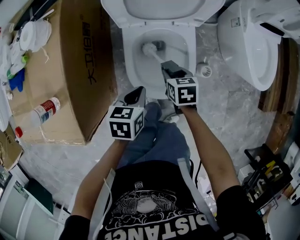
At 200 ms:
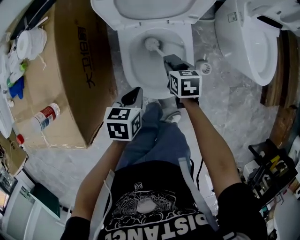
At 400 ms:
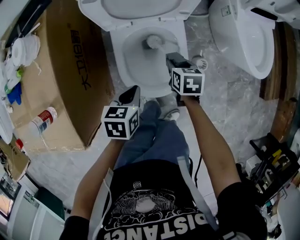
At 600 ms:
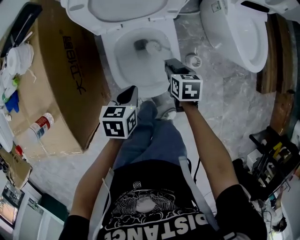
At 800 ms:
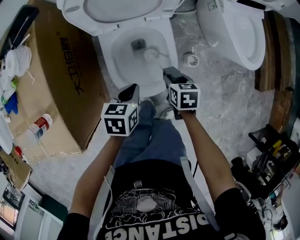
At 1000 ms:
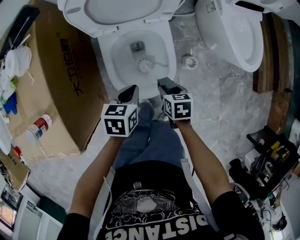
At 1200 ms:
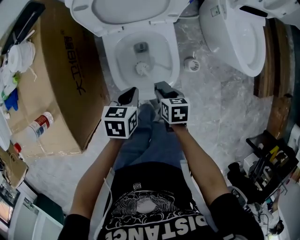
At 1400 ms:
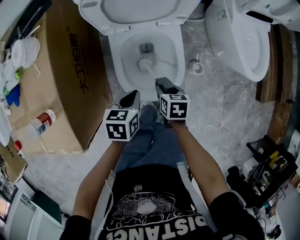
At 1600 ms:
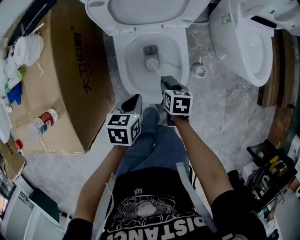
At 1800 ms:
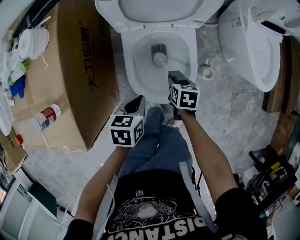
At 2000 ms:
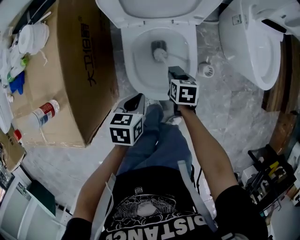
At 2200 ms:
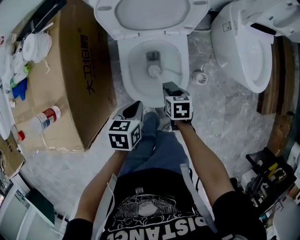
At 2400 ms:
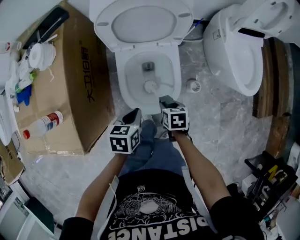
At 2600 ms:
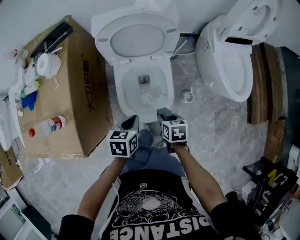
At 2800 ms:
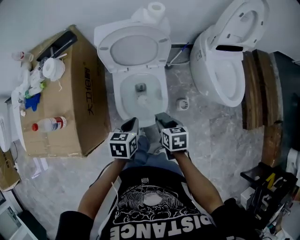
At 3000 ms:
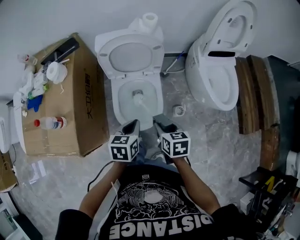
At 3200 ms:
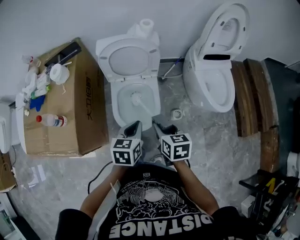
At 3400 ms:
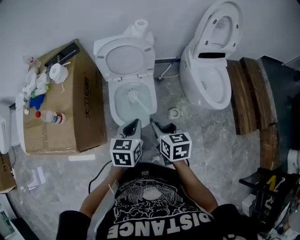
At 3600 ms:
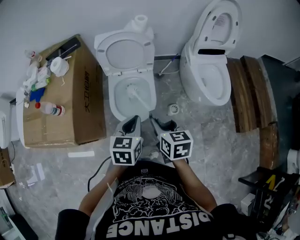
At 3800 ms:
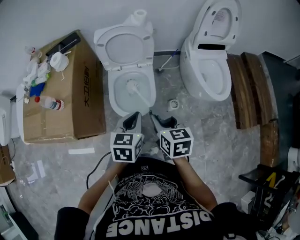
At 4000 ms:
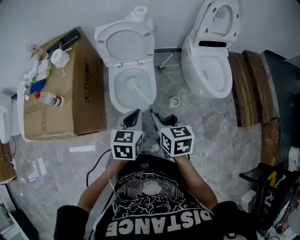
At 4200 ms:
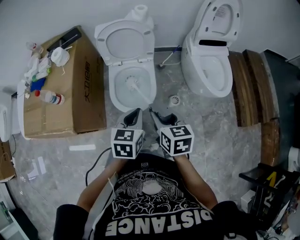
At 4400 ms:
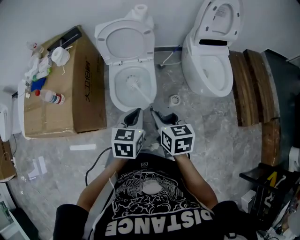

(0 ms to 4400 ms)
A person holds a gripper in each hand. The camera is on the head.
0 ms - 1400 ms: The right gripper shifts about 5 cm backward.
1400 ms - 3000 ms: The left gripper is displaced upward and to the right by roughly 15 cm; the right gripper moves upward, about 20 cm.
3000 ms - 4400 ms: The left gripper travels backward, upward and to the right by about 15 cm, while the right gripper shifts about 15 cm upward and backward.

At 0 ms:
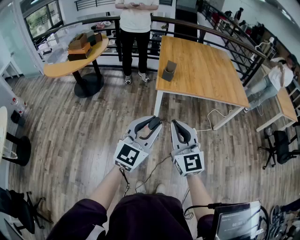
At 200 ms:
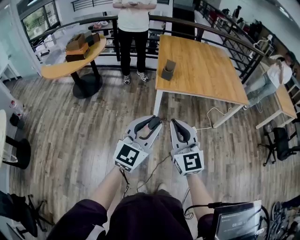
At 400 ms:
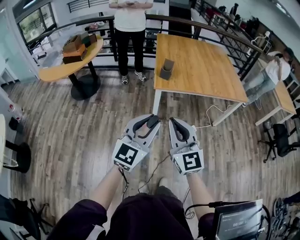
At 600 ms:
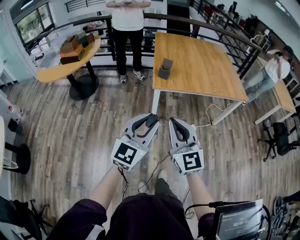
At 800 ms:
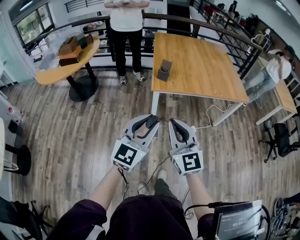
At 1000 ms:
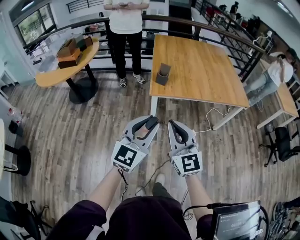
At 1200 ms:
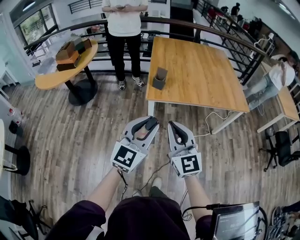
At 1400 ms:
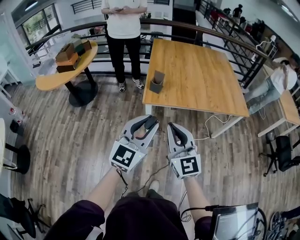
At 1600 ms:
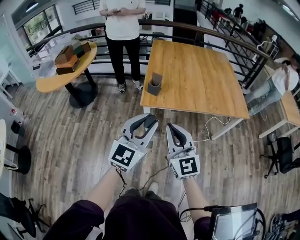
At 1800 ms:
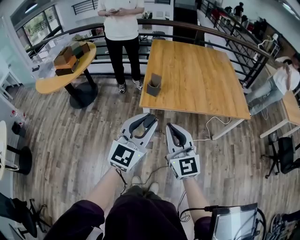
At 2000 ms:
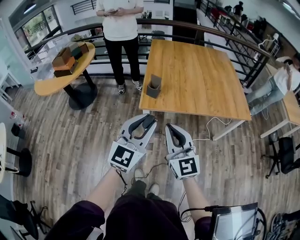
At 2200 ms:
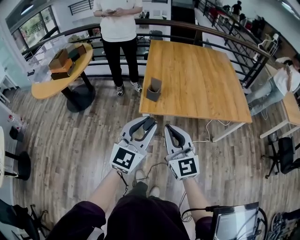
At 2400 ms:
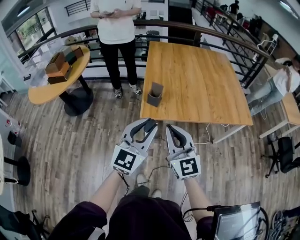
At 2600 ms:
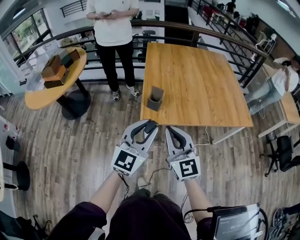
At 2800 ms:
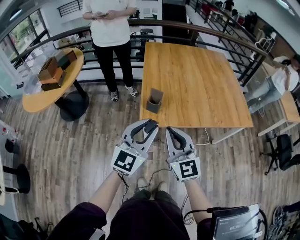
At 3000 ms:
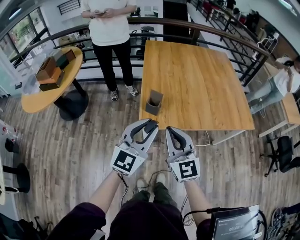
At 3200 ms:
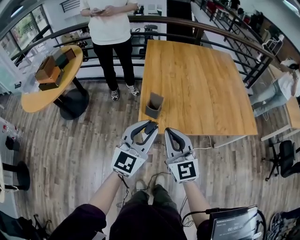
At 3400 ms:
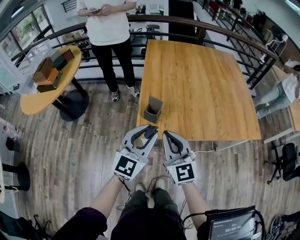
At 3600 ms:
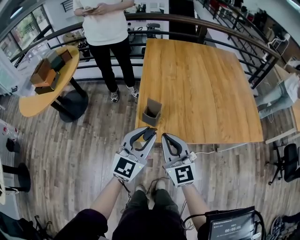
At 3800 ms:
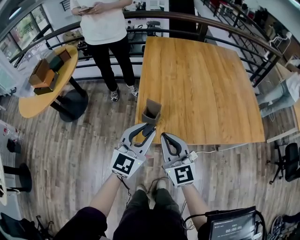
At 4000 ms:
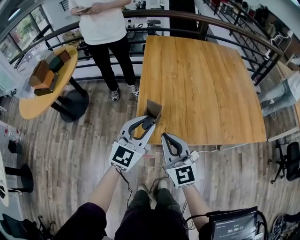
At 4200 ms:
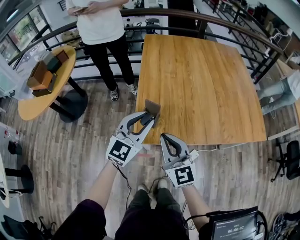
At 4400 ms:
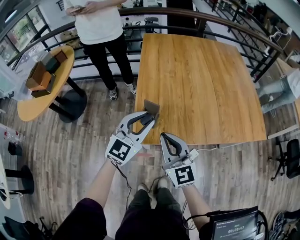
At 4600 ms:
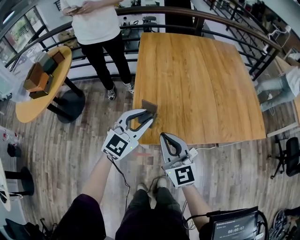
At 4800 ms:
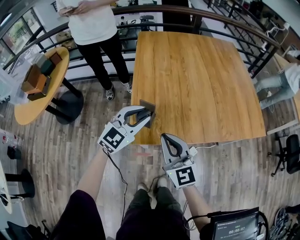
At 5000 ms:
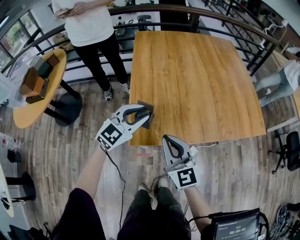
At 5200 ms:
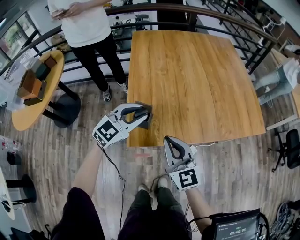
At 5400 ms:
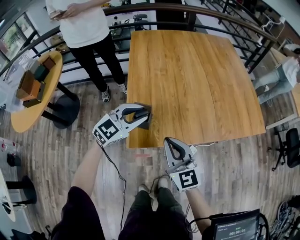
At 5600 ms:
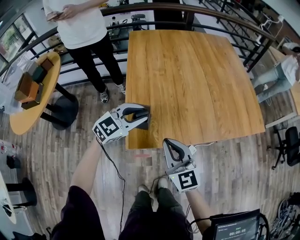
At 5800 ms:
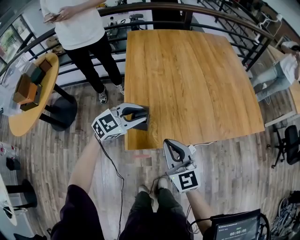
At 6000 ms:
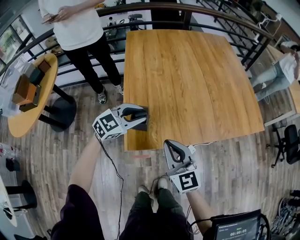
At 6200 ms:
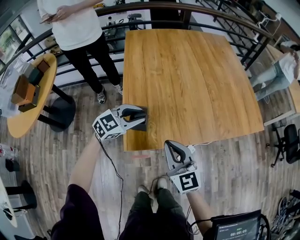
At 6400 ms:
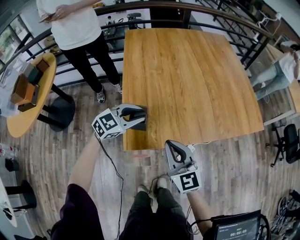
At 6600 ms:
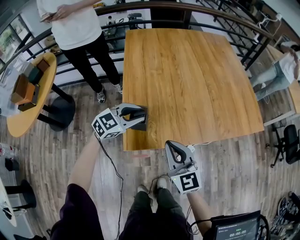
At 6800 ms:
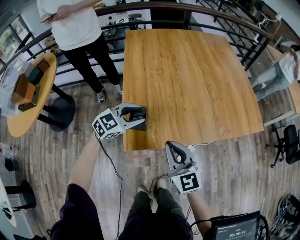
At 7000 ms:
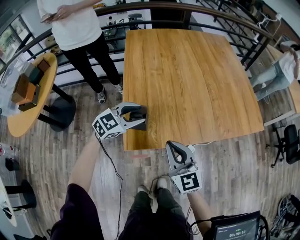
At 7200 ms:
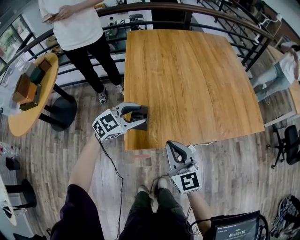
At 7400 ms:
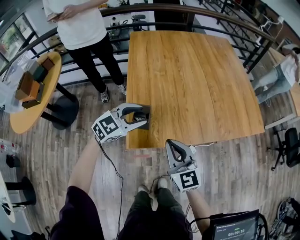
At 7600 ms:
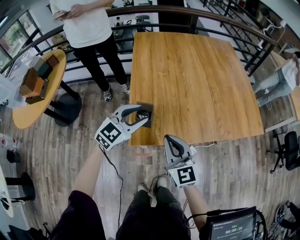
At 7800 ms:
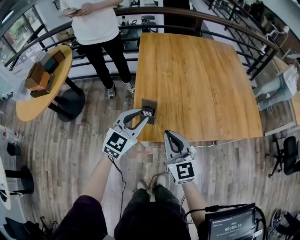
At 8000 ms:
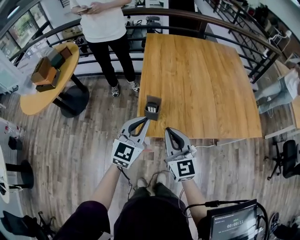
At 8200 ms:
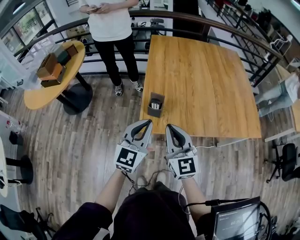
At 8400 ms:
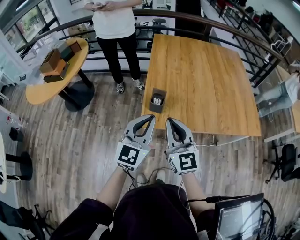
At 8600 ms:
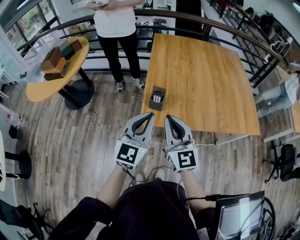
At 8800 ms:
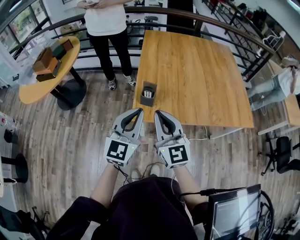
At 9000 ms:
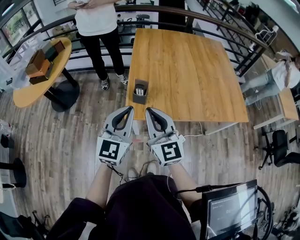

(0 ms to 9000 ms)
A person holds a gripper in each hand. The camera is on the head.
0 ms - 1600 ms: Both grippers move forward and to the right, about 25 cm.
1600 ms - 3000 ms: The two grippers go about 25 cm forward.
3000 ms - 4400 ms: Both grippers move forward and downward, approximately 20 cm.
4400 ms - 6000 ms: The left gripper moves downward and forward, some 15 cm, and rotates approximately 30 degrees. Meanwhile the right gripper moves about 5 cm.
6000 ms - 7600 ms: The left gripper travels upward by roughly 5 cm.
7600 ms - 9000 ms: The right gripper goes some 20 cm upward, backward and to the left, while the left gripper travels backward and upward by approximately 25 cm, swivels approximately 40 degrees, and closes.

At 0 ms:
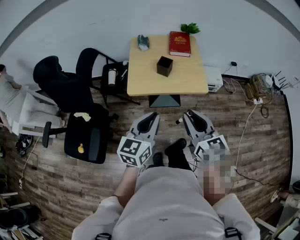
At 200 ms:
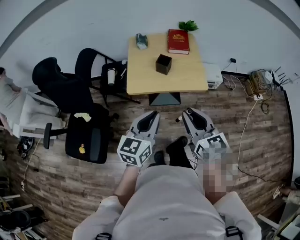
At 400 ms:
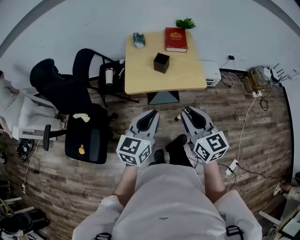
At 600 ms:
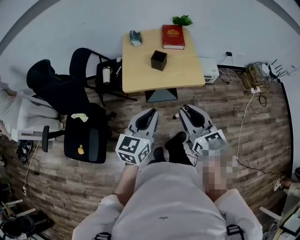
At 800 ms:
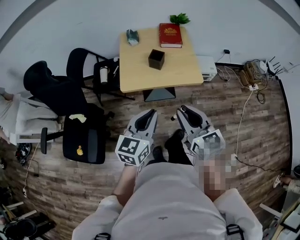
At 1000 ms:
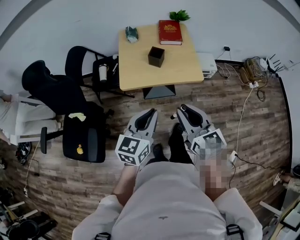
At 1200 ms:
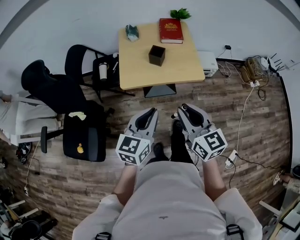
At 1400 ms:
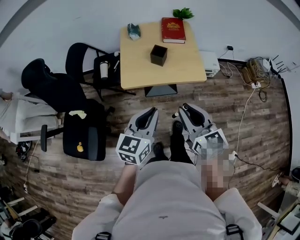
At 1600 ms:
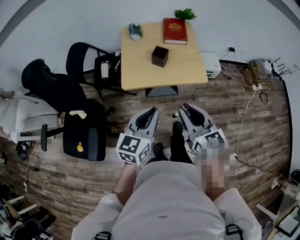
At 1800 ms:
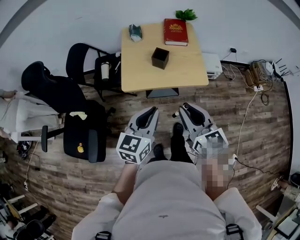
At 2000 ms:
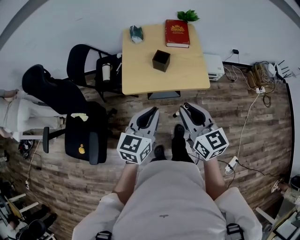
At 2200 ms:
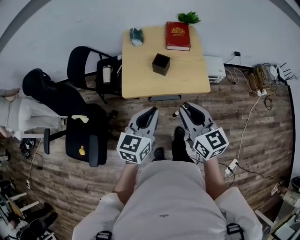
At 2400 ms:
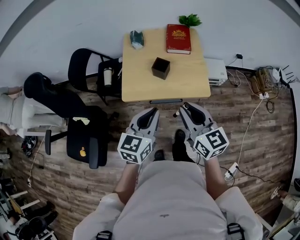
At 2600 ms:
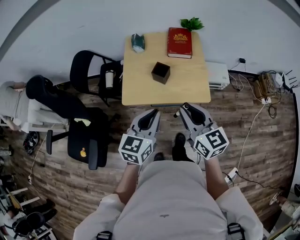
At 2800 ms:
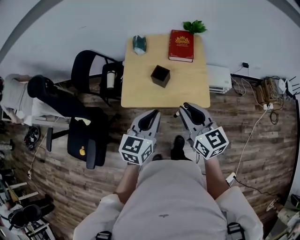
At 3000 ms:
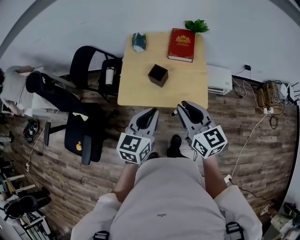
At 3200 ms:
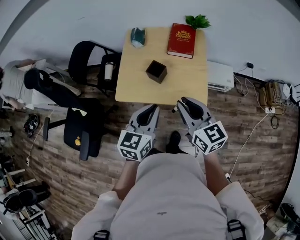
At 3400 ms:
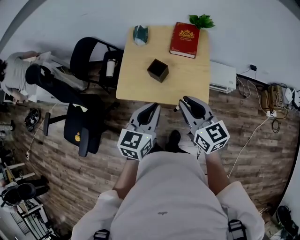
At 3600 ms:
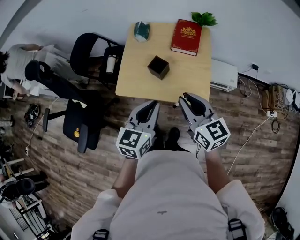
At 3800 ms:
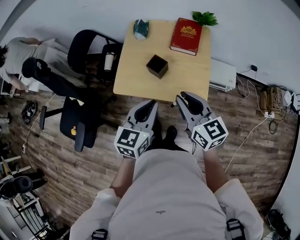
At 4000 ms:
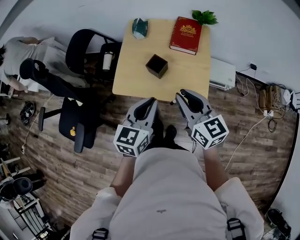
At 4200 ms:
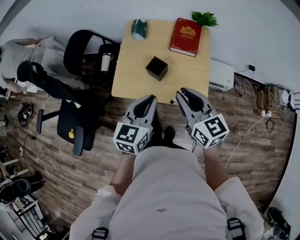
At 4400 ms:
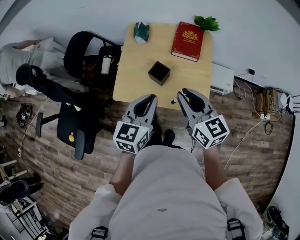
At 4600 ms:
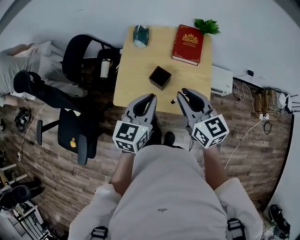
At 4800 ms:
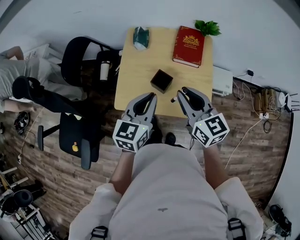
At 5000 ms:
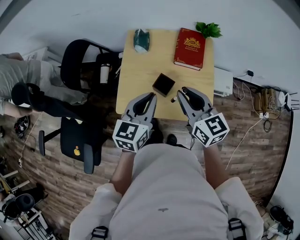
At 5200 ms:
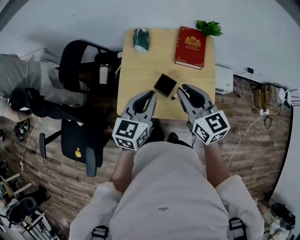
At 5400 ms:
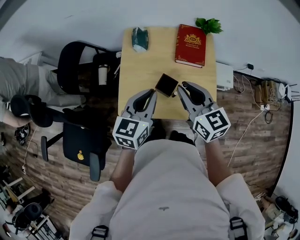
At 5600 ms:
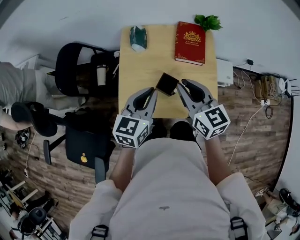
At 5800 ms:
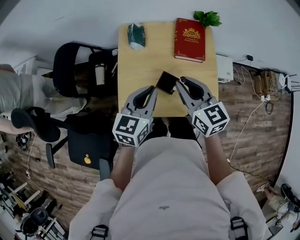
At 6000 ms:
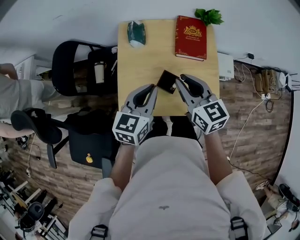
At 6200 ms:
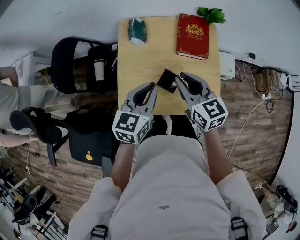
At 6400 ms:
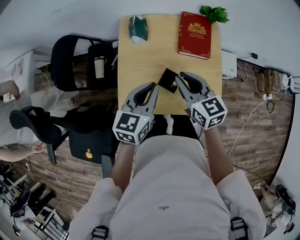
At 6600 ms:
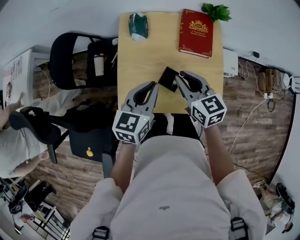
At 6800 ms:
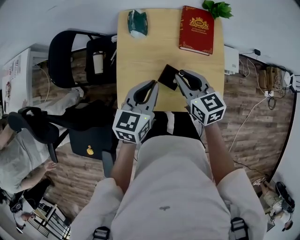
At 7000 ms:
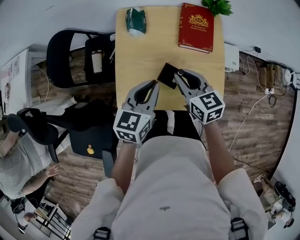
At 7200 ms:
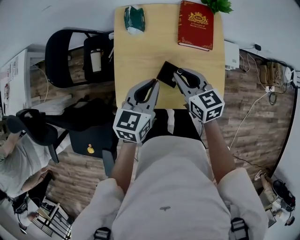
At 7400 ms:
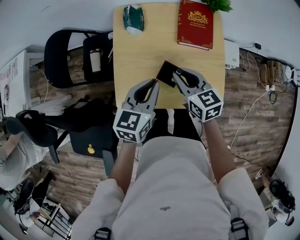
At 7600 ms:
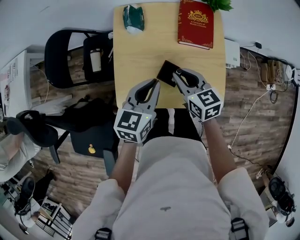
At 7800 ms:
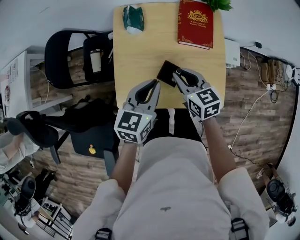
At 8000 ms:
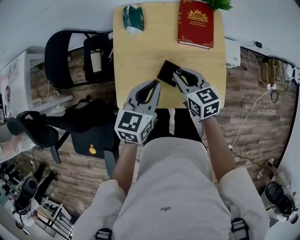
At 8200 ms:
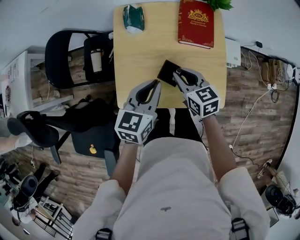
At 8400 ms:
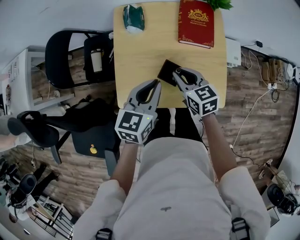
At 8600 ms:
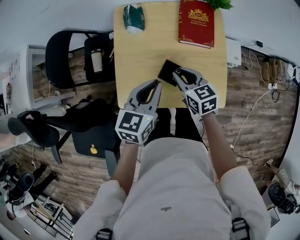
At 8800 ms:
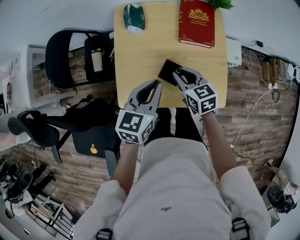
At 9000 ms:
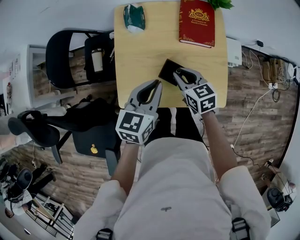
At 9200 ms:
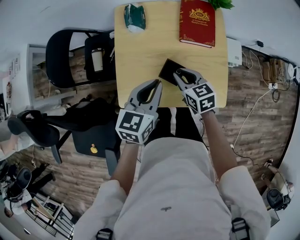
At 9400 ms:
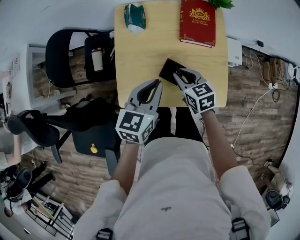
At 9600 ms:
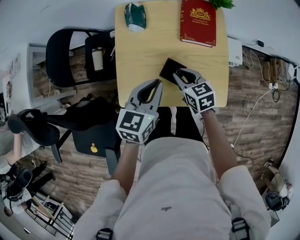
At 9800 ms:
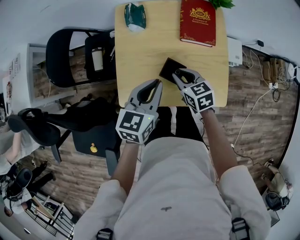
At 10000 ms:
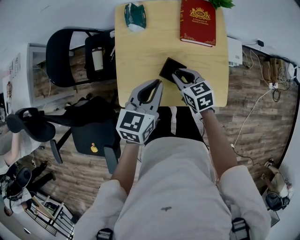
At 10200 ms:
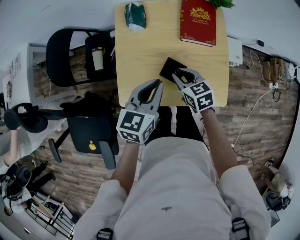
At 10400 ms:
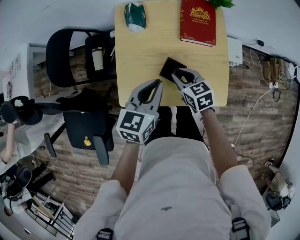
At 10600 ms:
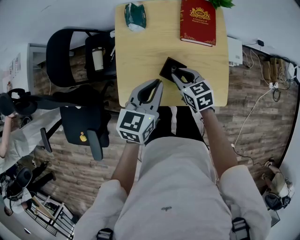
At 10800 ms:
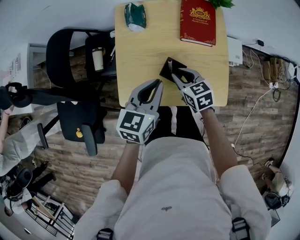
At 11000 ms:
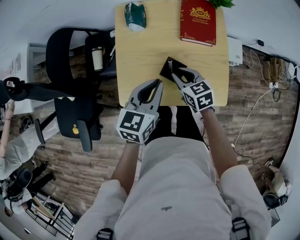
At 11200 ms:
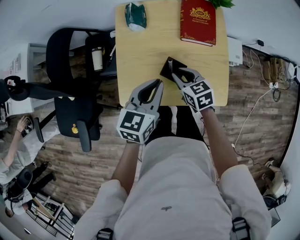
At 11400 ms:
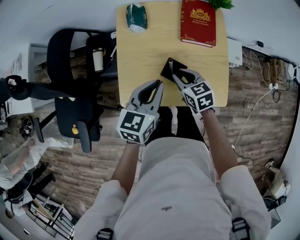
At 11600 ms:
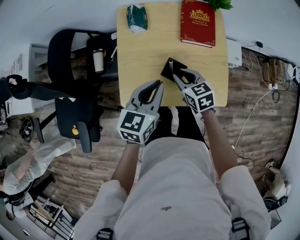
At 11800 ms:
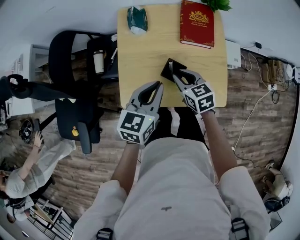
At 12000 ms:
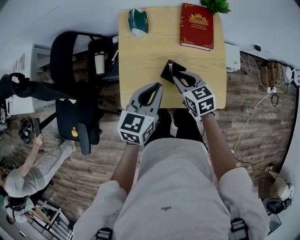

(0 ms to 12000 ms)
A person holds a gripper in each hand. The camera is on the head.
0 ms - 1600 ms: The grippers make only small movements.
1600 ms - 3000 ms: Both grippers move forward and to the right, approximately 20 cm.
3000 ms - 4400 ms: Both grippers travel together forward, some 10 cm.
4400 ms - 6000 ms: The grippers both shift forward and to the left by approximately 15 cm.
6000 ms - 7600 ms: The right gripper heads downward, covering approximately 10 cm. Meanwhile the left gripper ends up approximately 5 cm from where it was.
7600 ms - 9000 ms: The right gripper goes some 5 cm downward.
9000 ms - 12000 ms: The grippers move only a little.
